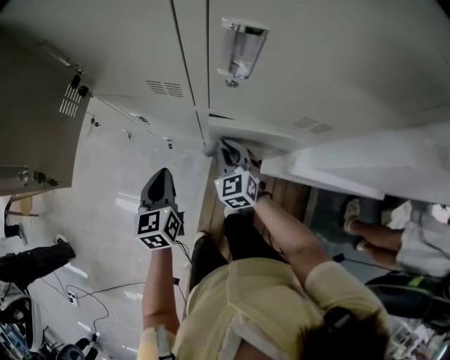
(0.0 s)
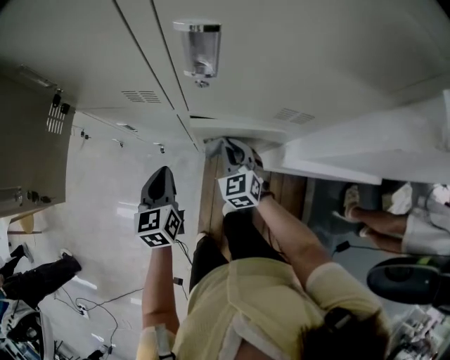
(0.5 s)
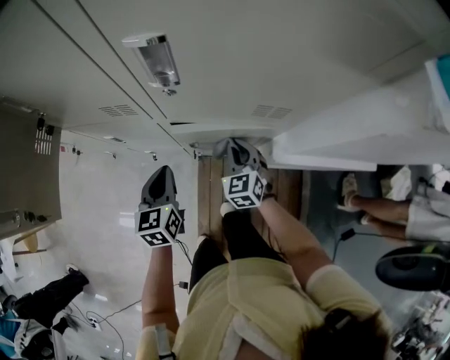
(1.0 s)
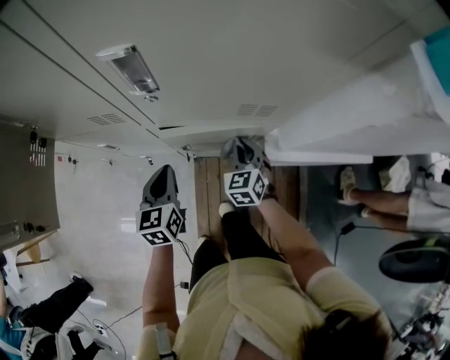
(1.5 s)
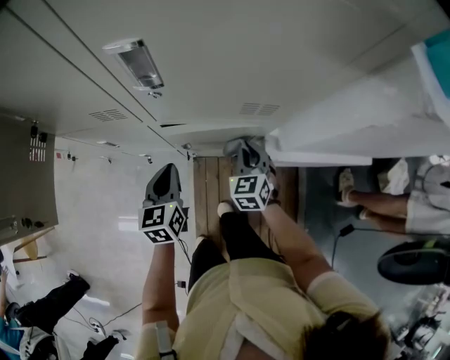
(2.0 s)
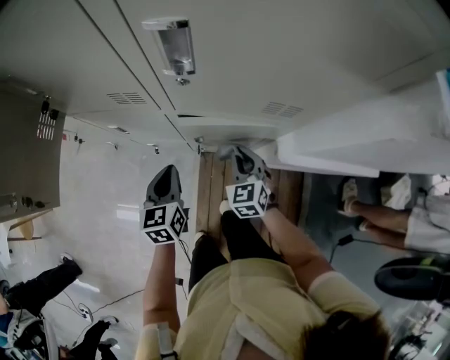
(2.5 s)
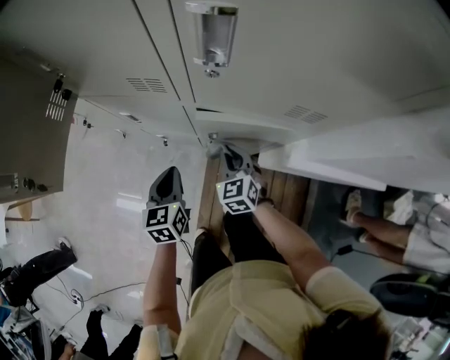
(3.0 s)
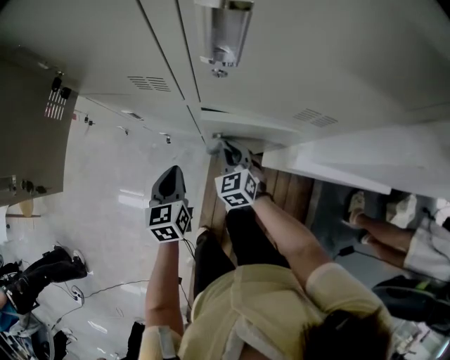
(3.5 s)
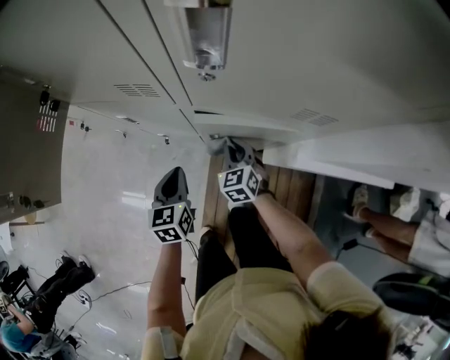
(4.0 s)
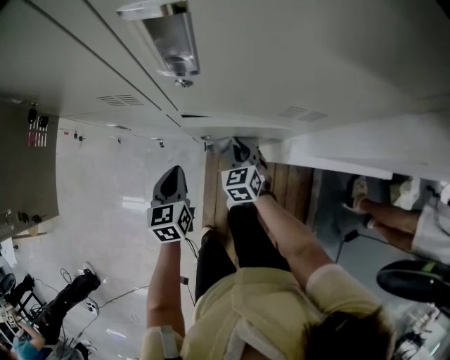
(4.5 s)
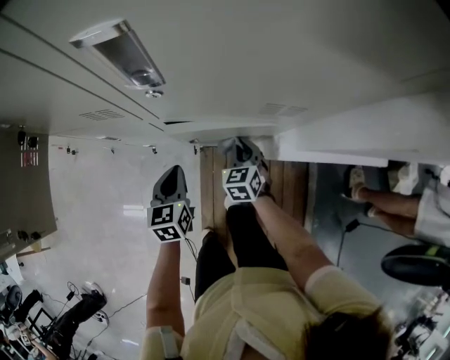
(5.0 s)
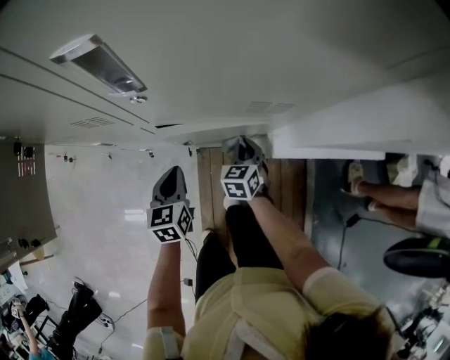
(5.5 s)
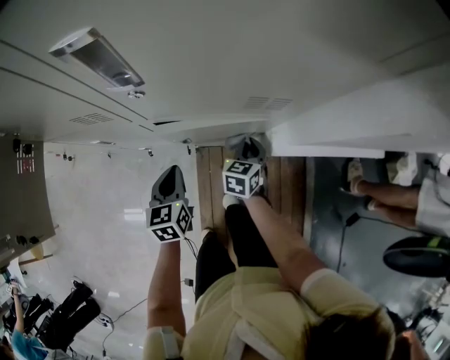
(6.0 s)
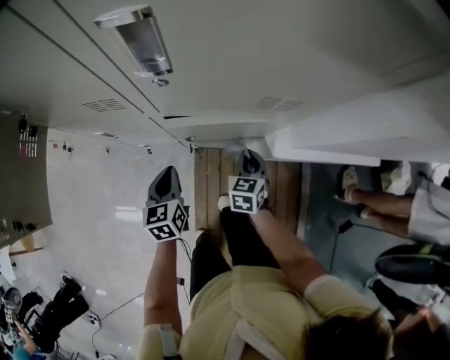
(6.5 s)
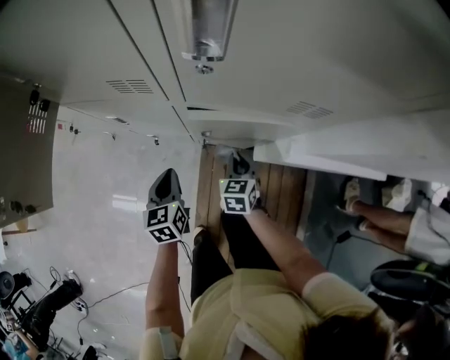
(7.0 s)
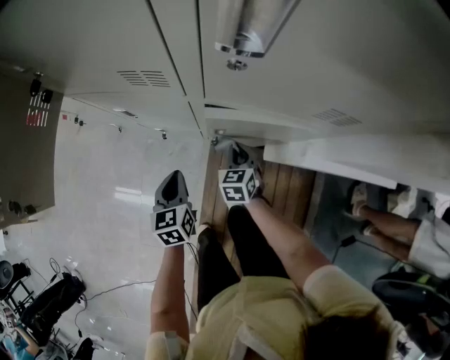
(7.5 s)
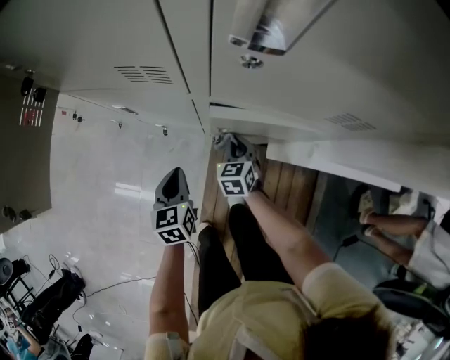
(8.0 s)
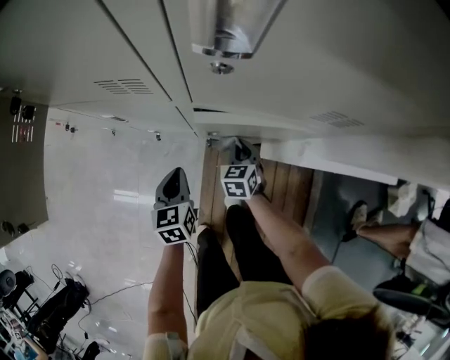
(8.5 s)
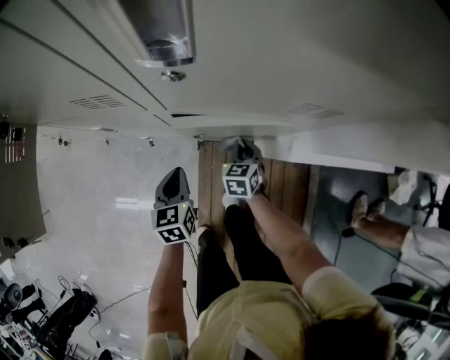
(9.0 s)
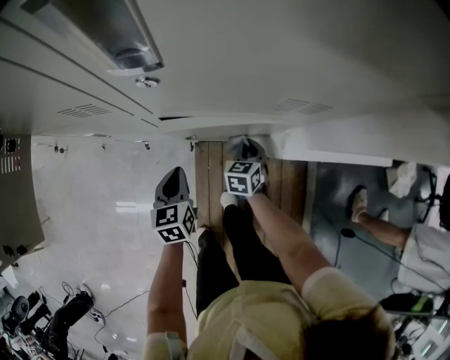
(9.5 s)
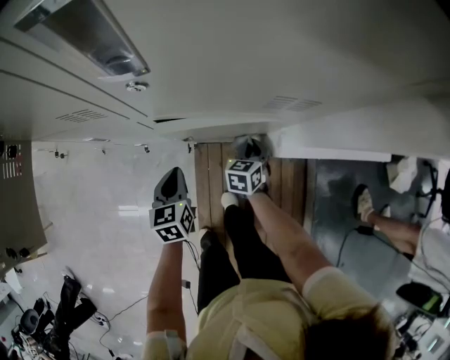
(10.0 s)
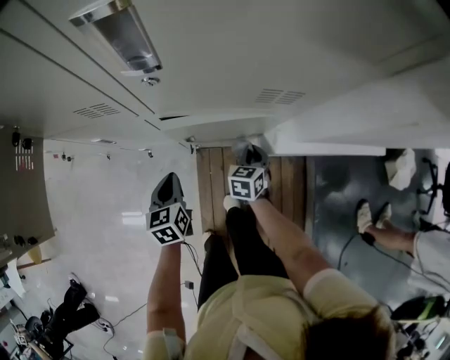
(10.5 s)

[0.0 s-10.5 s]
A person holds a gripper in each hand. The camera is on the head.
0.0 to 2.0 s: The left gripper travels to the right by about 10 cm. Meanwhile the right gripper travels to the right by about 20 cm, and changes its angle by some 30 degrees.
2.0 to 4.0 s: The right gripper heads to the left and downward, covering about 15 cm, while the left gripper moves downward and to the left, approximately 10 cm.
4.0 to 6.5 s: The right gripper shifts approximately 15 cm to the right, and rotates about 30 degrees.
6.5 to 8.5 s: The right gripper shifts roughly 15 cm to the left and downward. The left gripper shifts roughly 5 cm downward.
8.5 to 10.5 s: The right gripper moves to the right, approximately 10 cm.

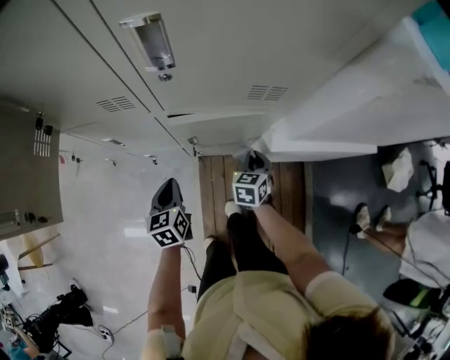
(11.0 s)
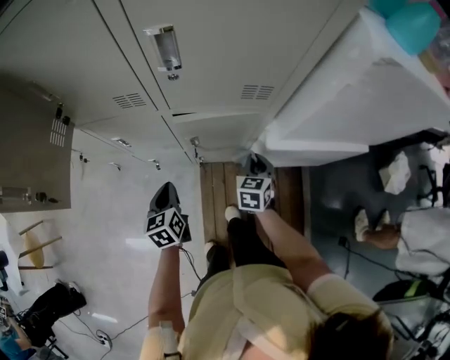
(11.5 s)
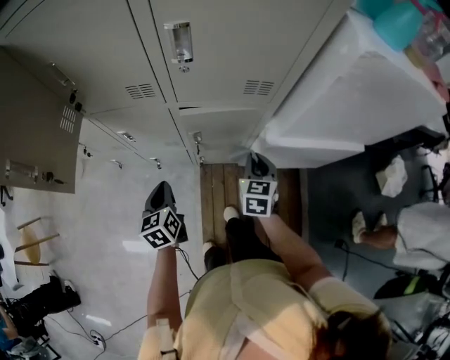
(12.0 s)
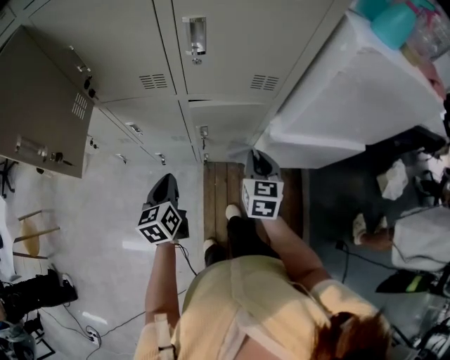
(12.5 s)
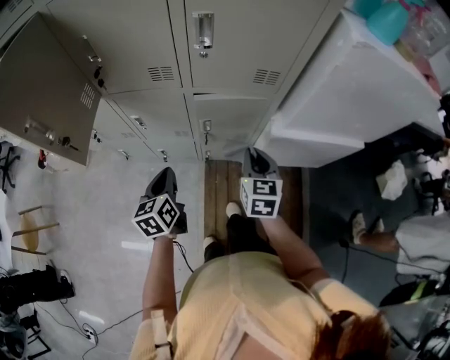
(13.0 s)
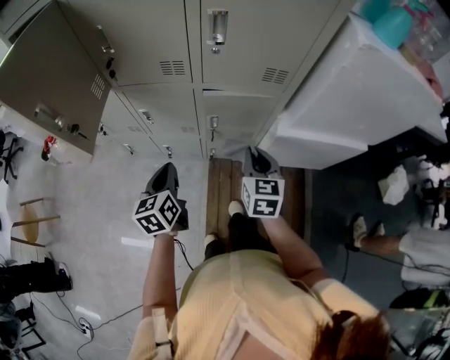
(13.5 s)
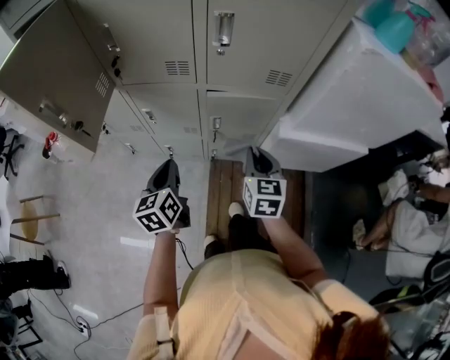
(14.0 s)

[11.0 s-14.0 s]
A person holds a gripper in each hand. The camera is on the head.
11.0 to 12.5 s: The left gripper is displaced upward and backward by about 15 cm. Meanwhile the right gripper travels upward and backward by some 20 cm, and swivels about 20 degrees.
12.5 to 14.0 s: The left gripper changes place by some 5 cm. Meanwhile the right gripper shifts by approximately 5 cm.

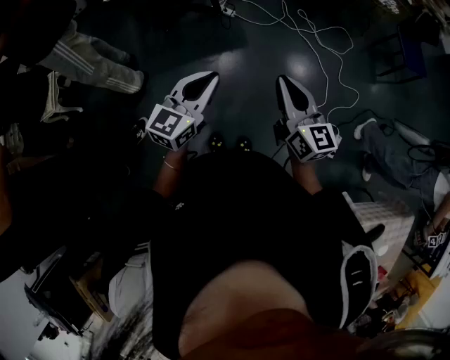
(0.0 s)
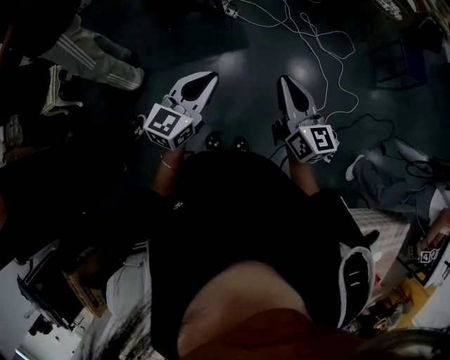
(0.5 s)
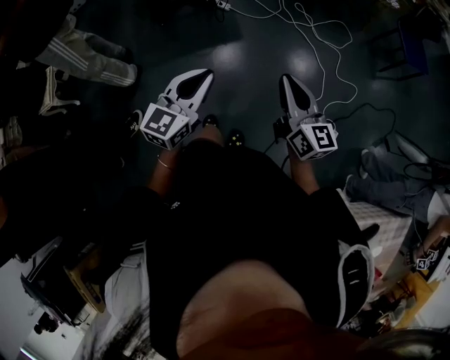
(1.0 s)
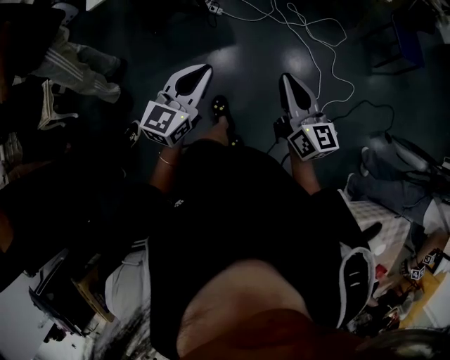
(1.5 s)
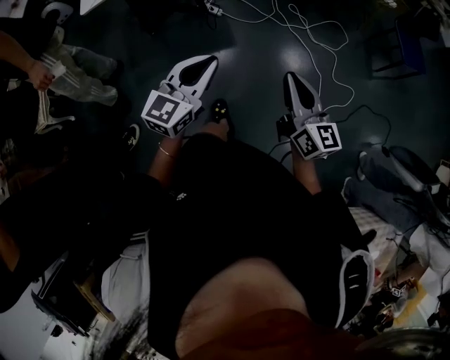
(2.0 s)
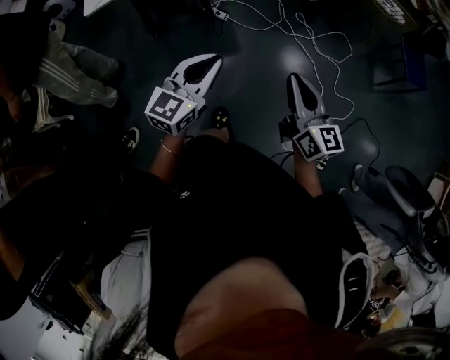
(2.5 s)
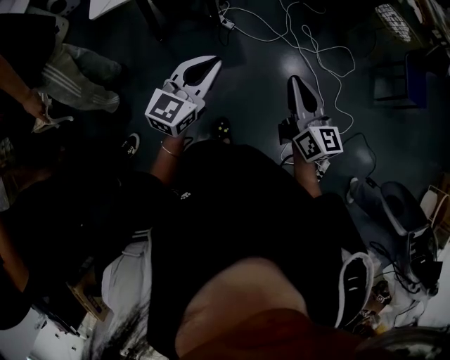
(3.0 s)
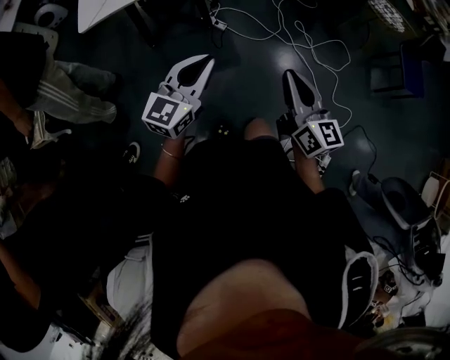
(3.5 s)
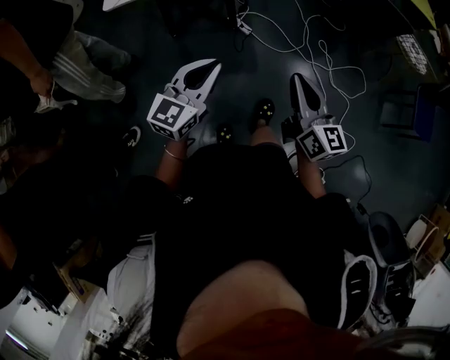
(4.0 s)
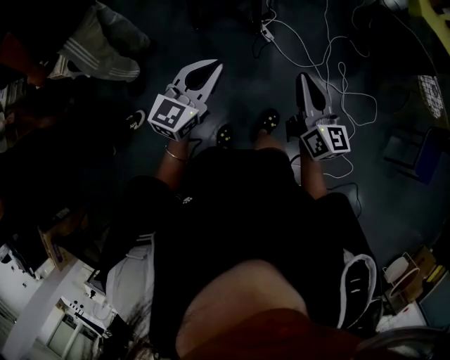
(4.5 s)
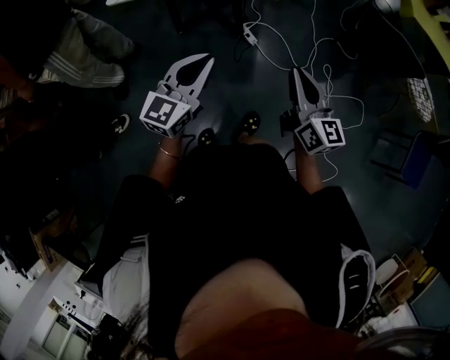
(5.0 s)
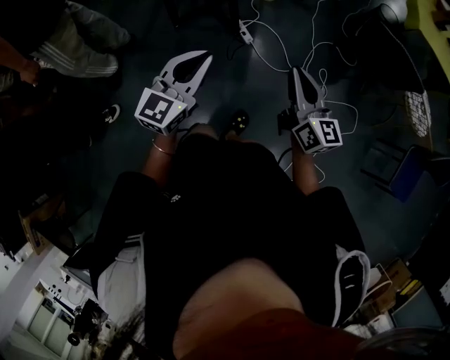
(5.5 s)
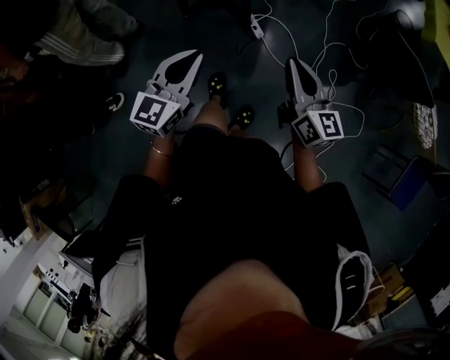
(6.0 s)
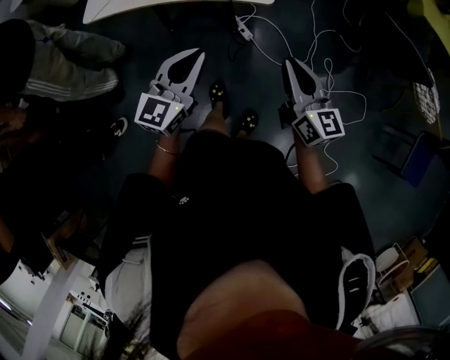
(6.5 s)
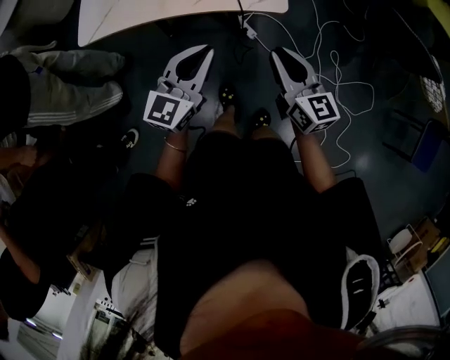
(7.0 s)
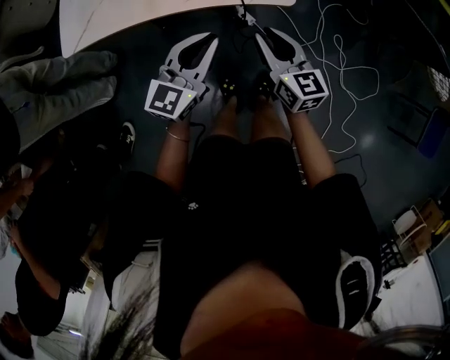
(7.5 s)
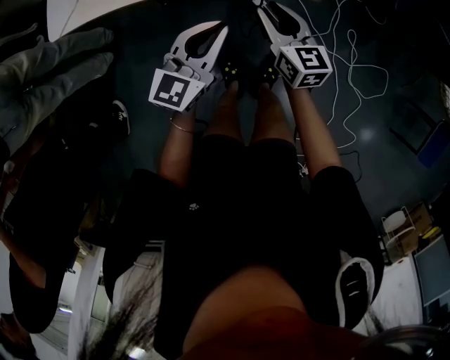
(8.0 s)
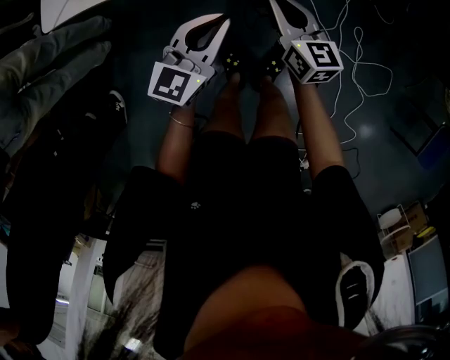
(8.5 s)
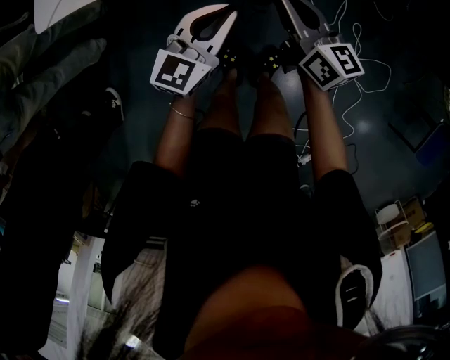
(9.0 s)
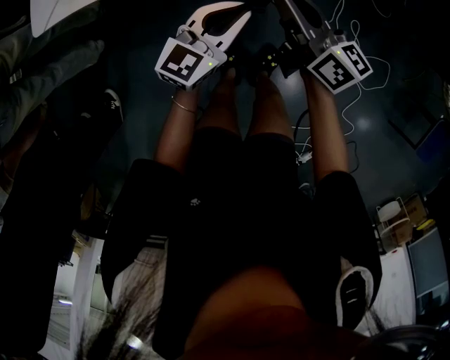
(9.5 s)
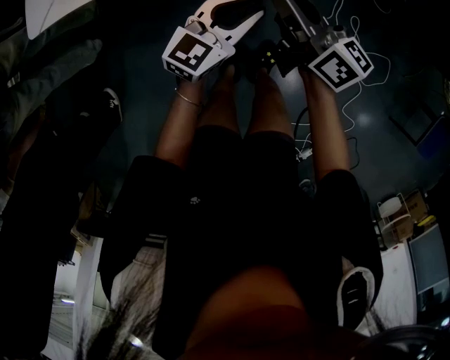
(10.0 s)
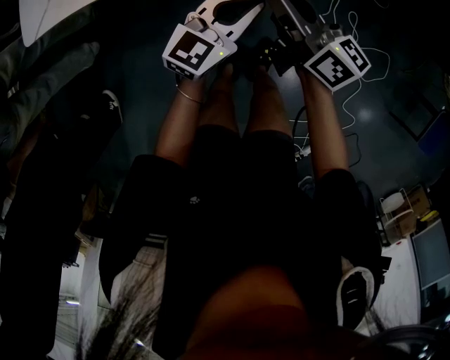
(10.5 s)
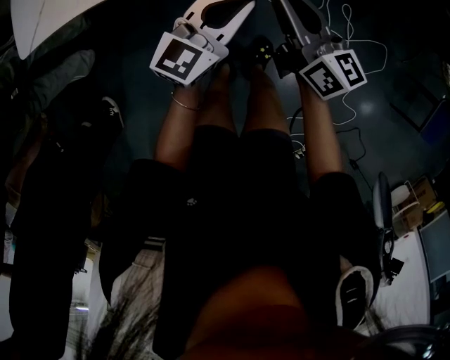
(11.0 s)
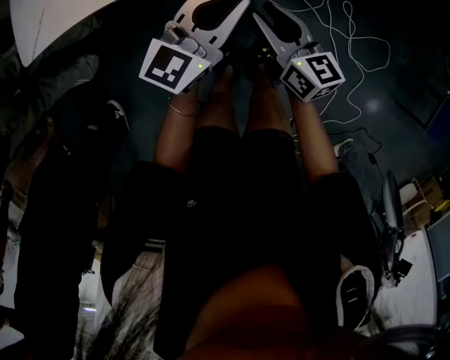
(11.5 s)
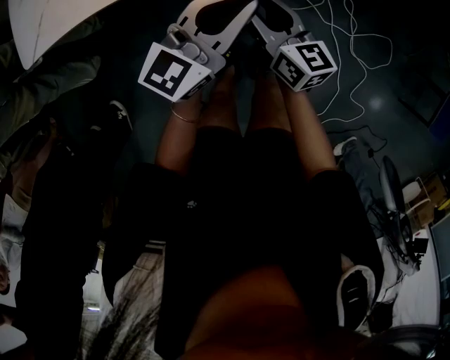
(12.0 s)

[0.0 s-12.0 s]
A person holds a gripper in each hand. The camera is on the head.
0.0 to 2.0 s: Both grippers travel together forward and to the right, some 10 cm.
2.0 to 4.0 s: Both grippers travel together forward and to the left, some 25 cm.
4.0 to 6.0 s: The right gripper heads forward and to the right, covering some 20 cm. Meanwhile the left gripper goes approximately 15 cm forward and to the right, and rotates some 20 degrees.
6.0 to 8.0 s: The left gripper goes some 25 cm forward and downward. Meanwhile the right gripper moves forward, downward and to the left, roughly 35 cm, and opens.
8.0 to 10.0 s: The right gripper goes roughly 10 cm upward, and turns by about 30 degrees, while the left gripper heads to the right, covering approximately 5 cm.
10.0 to 12.0 s: The left gripper travels upward by about 10 cm. Meanwhile the right gripper is displaced downward by roughly 10 cm, changes its angle by some 20 degrees, and opens up.

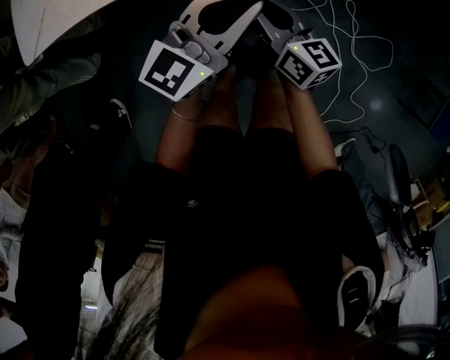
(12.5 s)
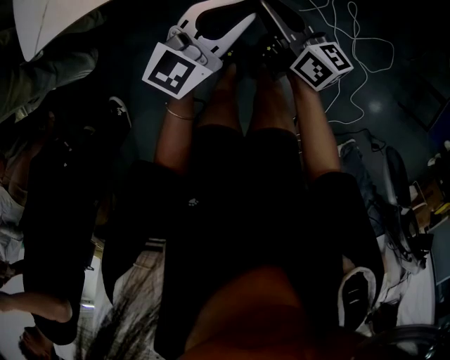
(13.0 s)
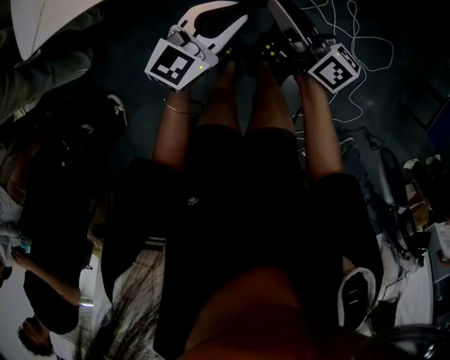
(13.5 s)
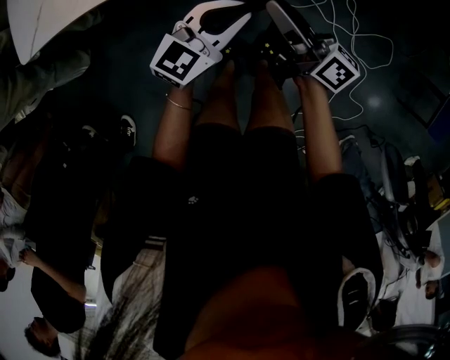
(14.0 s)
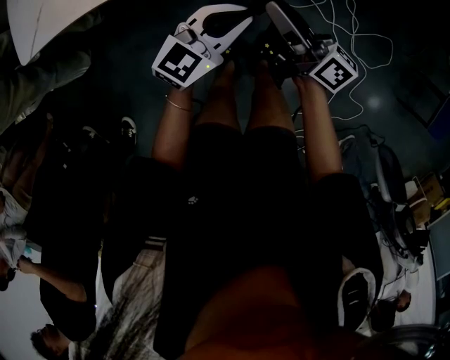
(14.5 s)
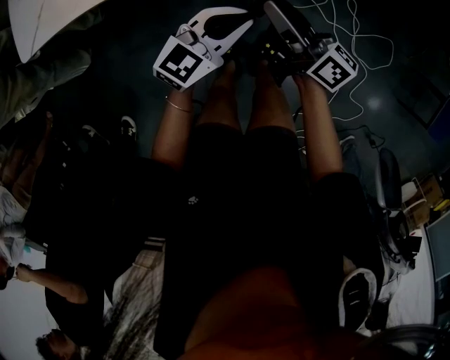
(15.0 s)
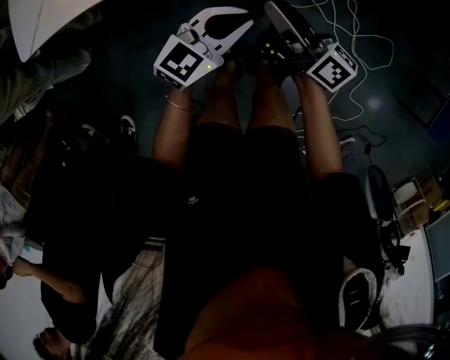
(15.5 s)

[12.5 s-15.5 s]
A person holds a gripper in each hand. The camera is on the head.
12.5 to 14.0 s: The left gripper is displaced downward by some 10 cm, while the right gripper ends up some 5 cm from where it was, and swivels about 30 degrees.
14.0 to 15.5 s: The grippers make only small movements.
